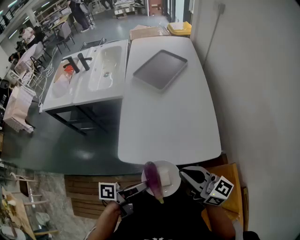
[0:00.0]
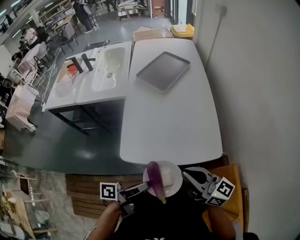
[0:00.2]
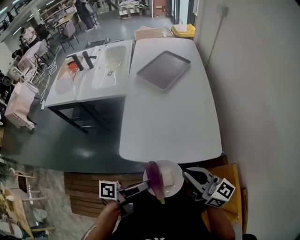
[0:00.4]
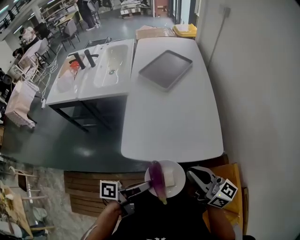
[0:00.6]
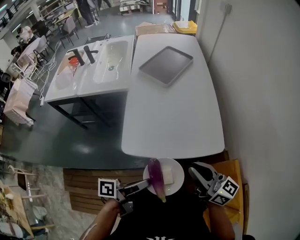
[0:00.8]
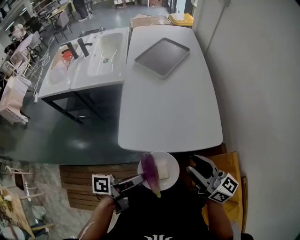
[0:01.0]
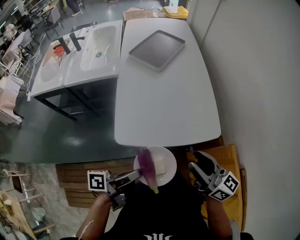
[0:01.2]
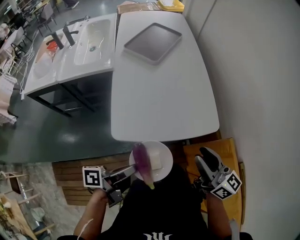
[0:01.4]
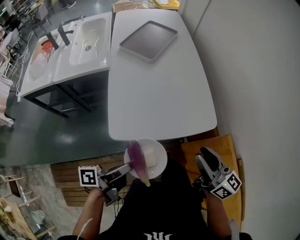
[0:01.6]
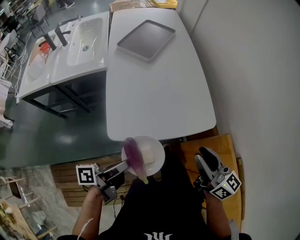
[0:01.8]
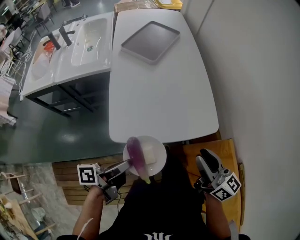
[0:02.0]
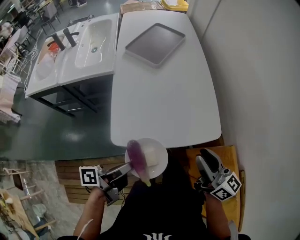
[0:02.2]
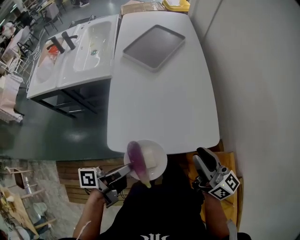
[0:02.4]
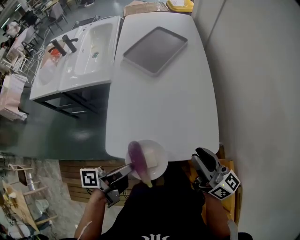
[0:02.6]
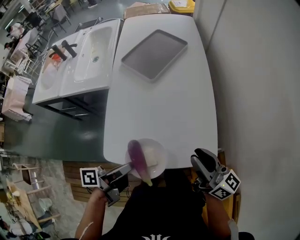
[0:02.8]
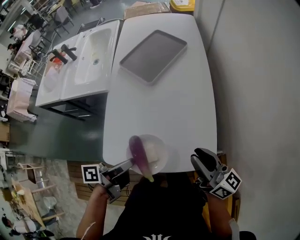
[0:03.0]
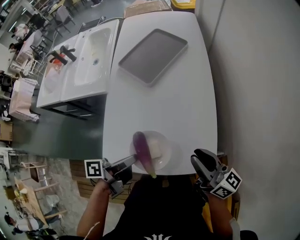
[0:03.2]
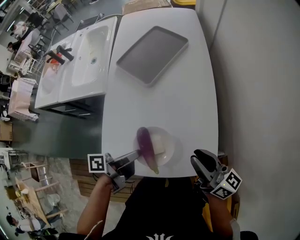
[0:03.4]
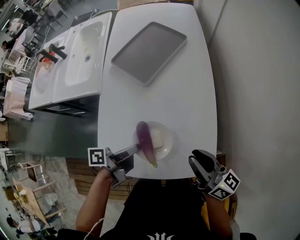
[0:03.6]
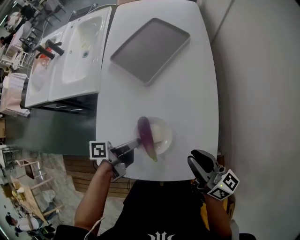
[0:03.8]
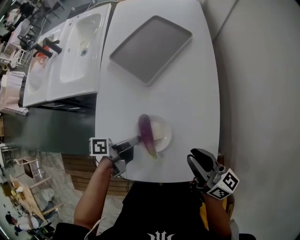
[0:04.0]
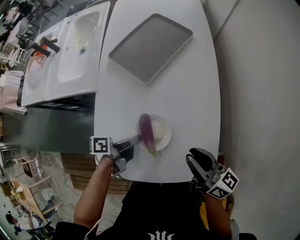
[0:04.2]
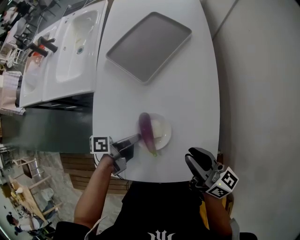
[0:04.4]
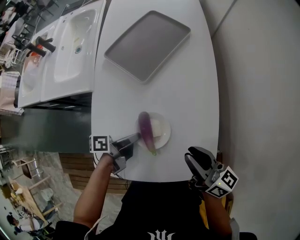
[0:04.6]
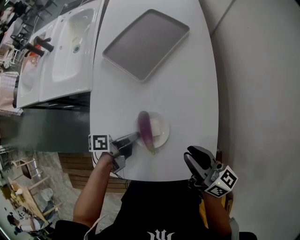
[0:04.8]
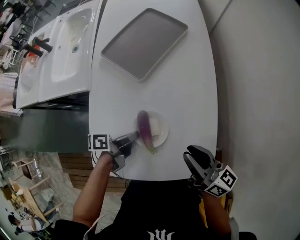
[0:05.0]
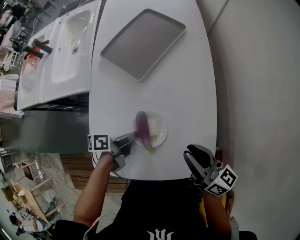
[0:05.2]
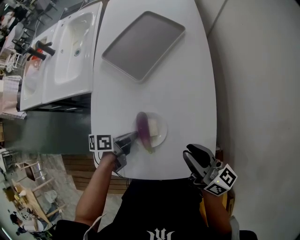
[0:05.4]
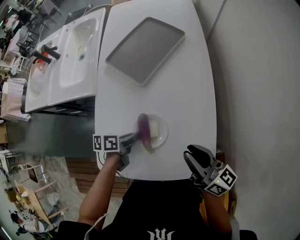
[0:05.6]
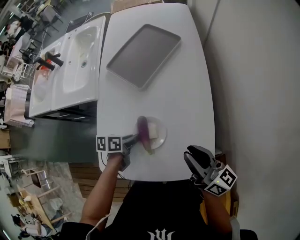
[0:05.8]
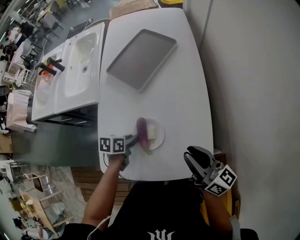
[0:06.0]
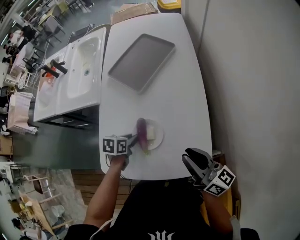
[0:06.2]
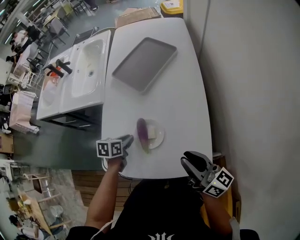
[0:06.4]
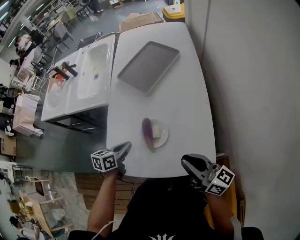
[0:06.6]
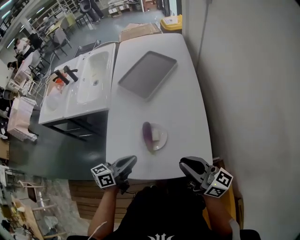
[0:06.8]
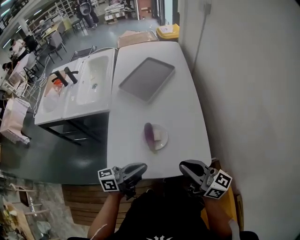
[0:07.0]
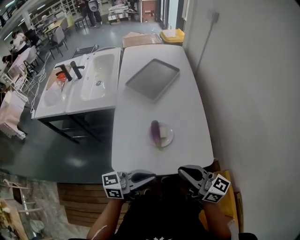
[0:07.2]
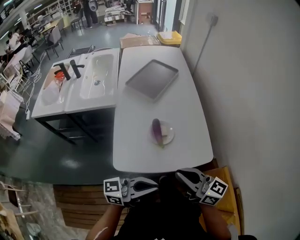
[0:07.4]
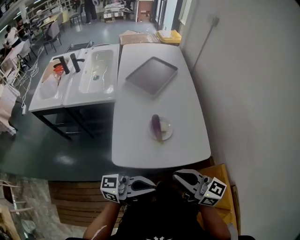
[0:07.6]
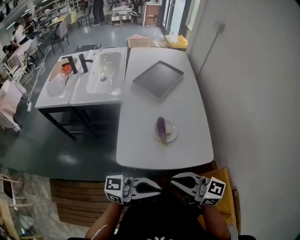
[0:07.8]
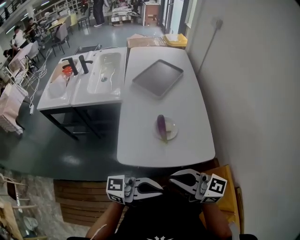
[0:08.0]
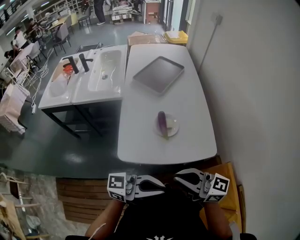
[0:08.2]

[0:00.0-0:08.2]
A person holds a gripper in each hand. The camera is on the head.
0.0 to 1.6 s: The right gripper ends up roughly 5 cm from where it was, rotates approximately 30 degrees, and opens its fingers.
1.6 to 3.2 s: The right gripper shifts by roughly 25 cm.
3.2 to 5.0 s: The right gripper changes place by about 10 cm.
5.0 to 6.6 s: The right gripper ends up roughly 10 cm from where it was.
6.6 to 8.2 s: The right gripper moves about 25 cm.

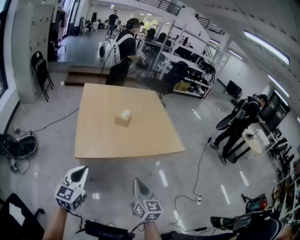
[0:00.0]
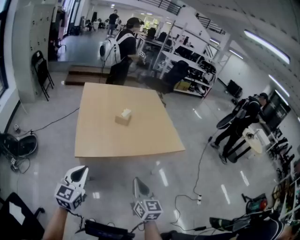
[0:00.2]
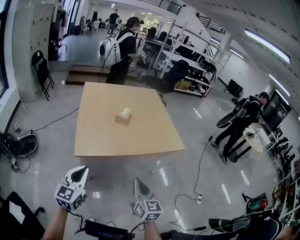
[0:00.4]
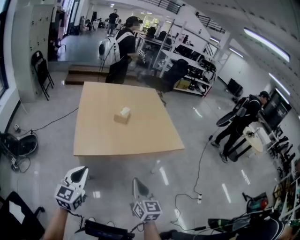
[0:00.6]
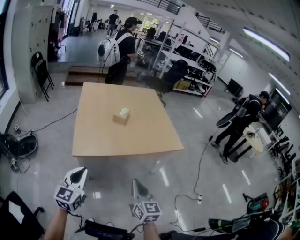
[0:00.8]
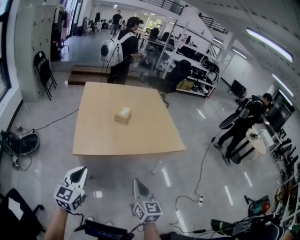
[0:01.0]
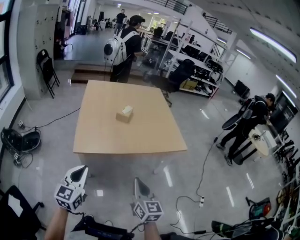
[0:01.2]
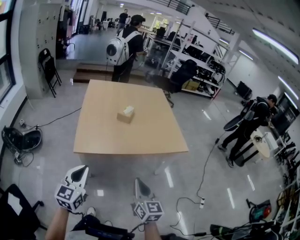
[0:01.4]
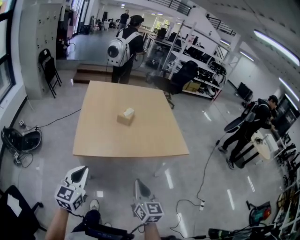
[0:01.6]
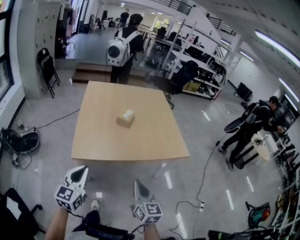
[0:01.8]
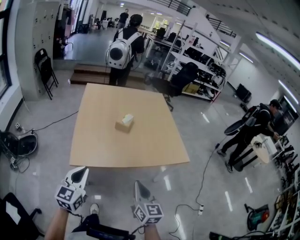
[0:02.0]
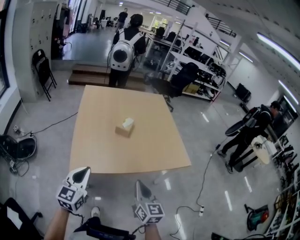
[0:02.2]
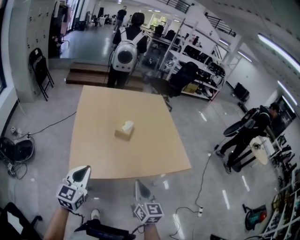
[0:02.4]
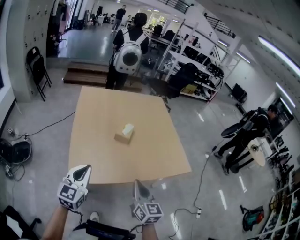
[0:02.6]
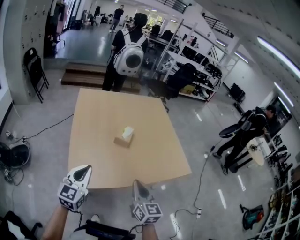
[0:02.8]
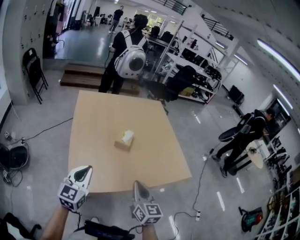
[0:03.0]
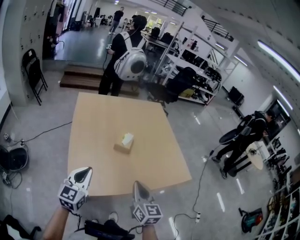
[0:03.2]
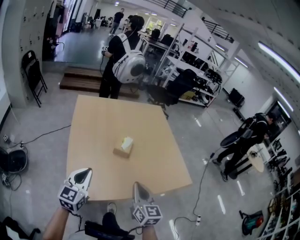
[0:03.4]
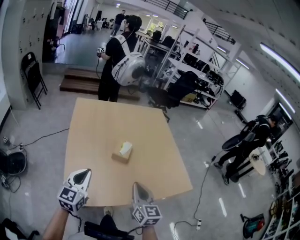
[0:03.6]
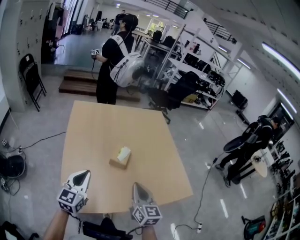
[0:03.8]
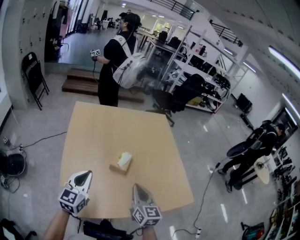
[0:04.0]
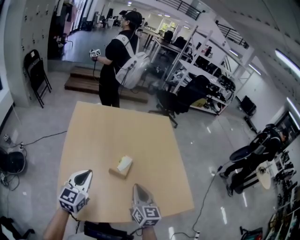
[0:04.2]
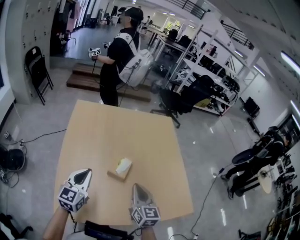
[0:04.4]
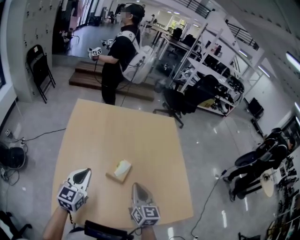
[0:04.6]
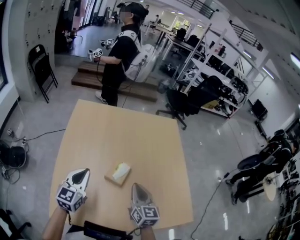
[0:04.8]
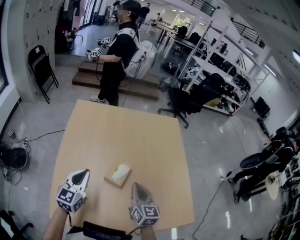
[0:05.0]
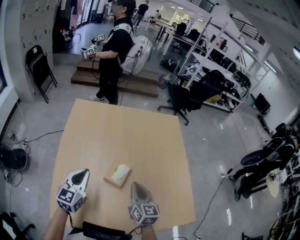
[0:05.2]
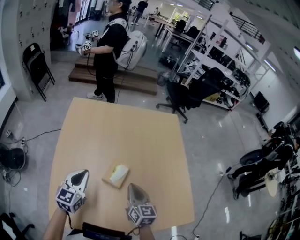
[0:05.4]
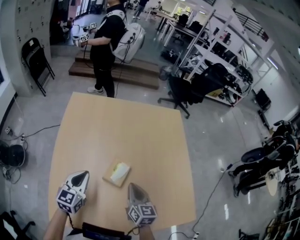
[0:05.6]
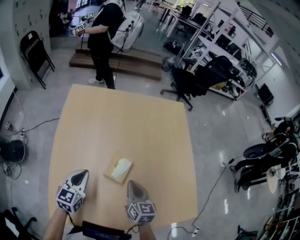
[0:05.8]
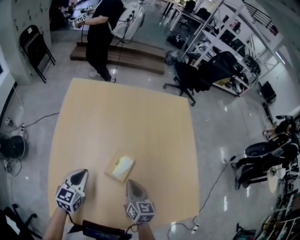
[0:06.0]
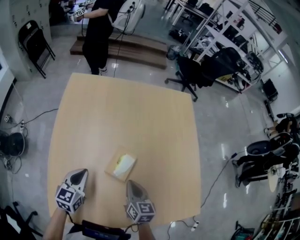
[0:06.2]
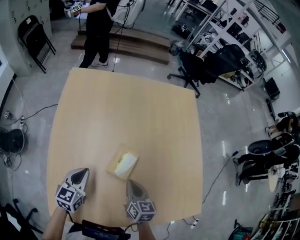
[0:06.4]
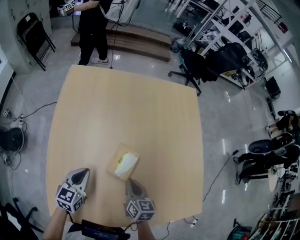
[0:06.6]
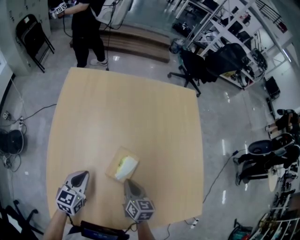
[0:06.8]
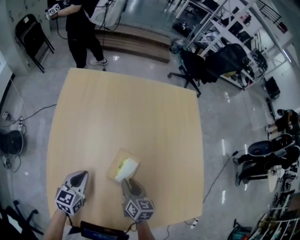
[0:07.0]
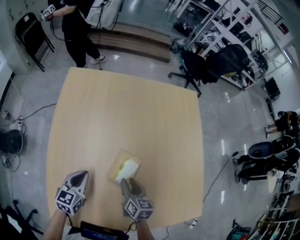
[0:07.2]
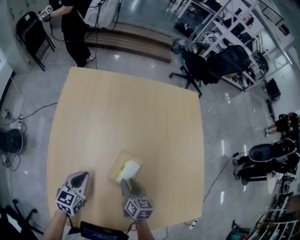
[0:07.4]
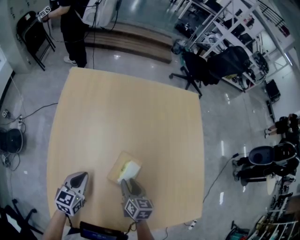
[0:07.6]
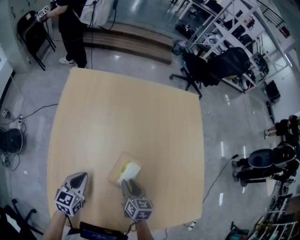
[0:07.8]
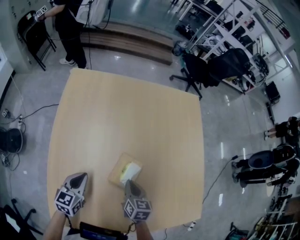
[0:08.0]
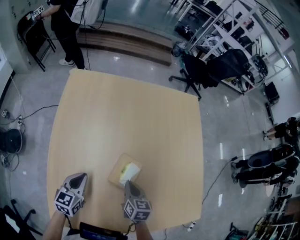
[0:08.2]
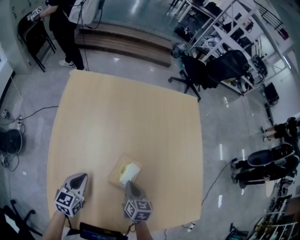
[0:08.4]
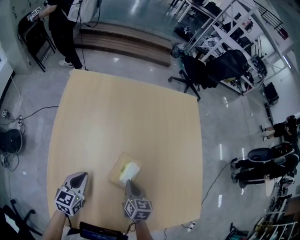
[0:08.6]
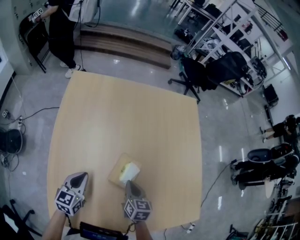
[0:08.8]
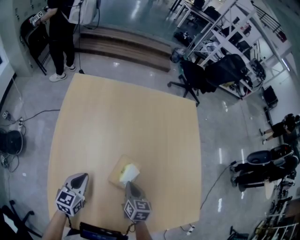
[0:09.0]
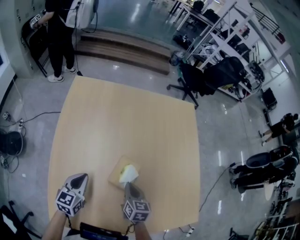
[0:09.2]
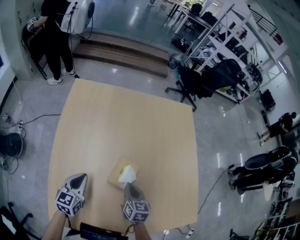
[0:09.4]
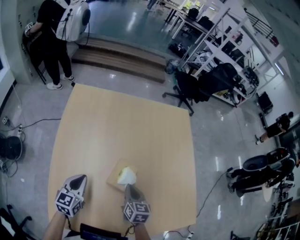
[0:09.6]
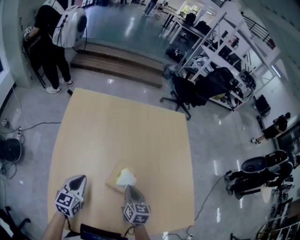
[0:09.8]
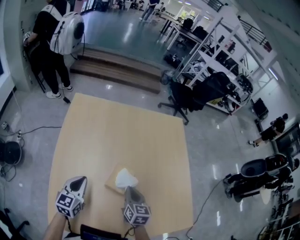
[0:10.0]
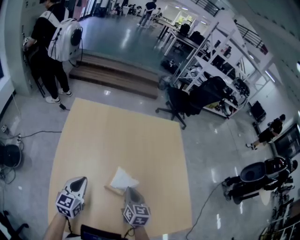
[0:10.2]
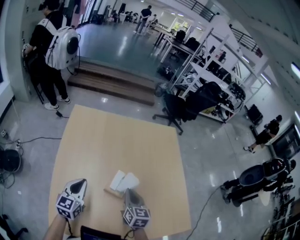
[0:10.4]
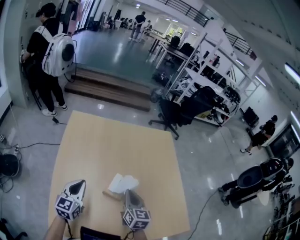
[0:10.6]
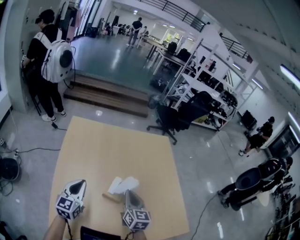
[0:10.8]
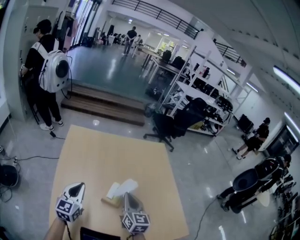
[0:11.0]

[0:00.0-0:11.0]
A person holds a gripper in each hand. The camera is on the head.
0.0 to 1.6 s: The grippers stay close to where they were, moving slightly.
1.6 to 3.2 s: The two grippers go roughly 25 cm forward.
3.2 to 4.8 s: Both grippers move forward, some 25 cm.
4.8 to 6.2 s: Both grippers move downward, some 10 cm.
6.2 to 7.8 s: The right gripper travels downward by roughly 5 cm, and opens.
7.8 to 9.4 s: The right gripper closes.
9.4 to 11.0 s: Both grippers move upward, some 15 cm. The left gripper turns by approximately 20 degrees. Meanwhile the right gripper changes its angle by some 30 degrees.

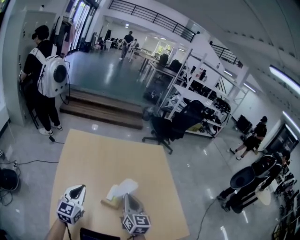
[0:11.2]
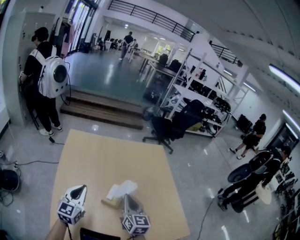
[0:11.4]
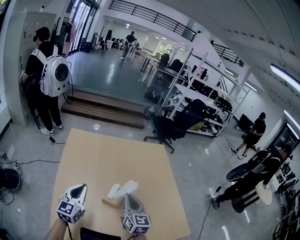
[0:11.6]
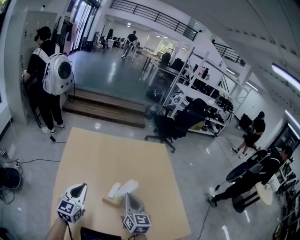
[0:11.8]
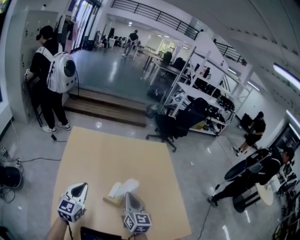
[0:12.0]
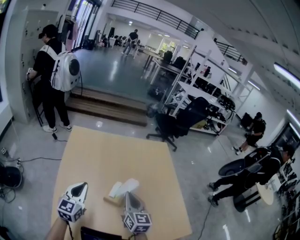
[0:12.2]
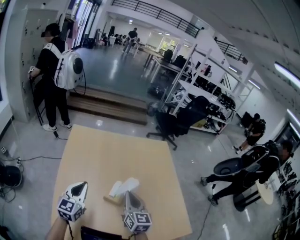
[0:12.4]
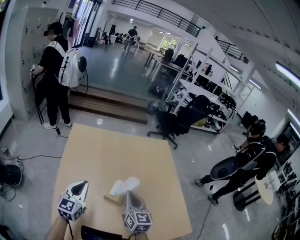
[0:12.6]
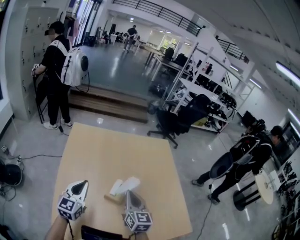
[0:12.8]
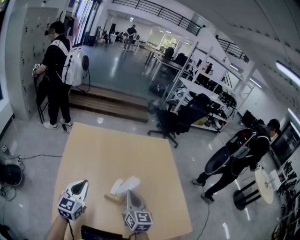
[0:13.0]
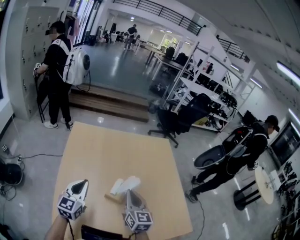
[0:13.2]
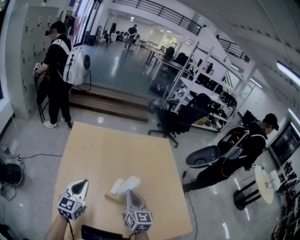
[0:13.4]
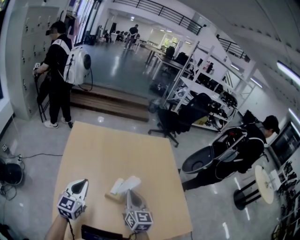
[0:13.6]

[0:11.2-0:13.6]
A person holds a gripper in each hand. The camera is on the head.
11.2 to 12.4 s: The grippers stay close to where they were, moving slightly.
12.4 to 13.6 s: Neither gripper changes place.

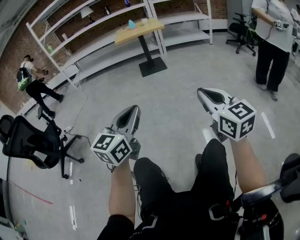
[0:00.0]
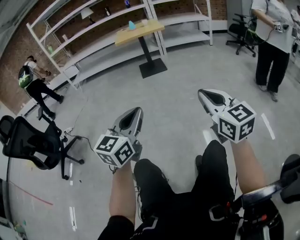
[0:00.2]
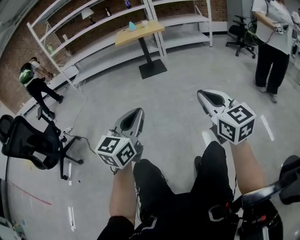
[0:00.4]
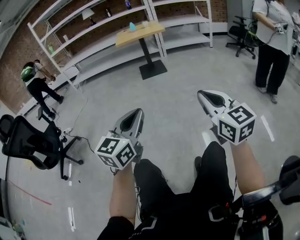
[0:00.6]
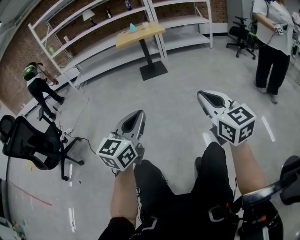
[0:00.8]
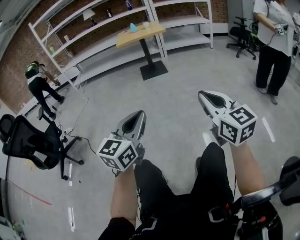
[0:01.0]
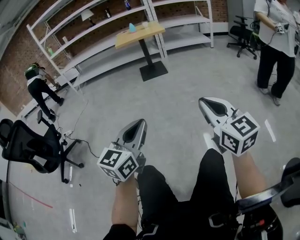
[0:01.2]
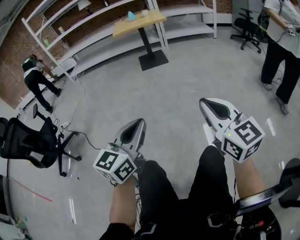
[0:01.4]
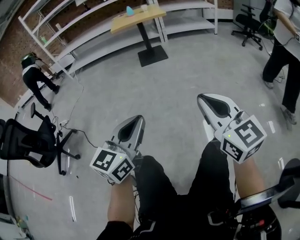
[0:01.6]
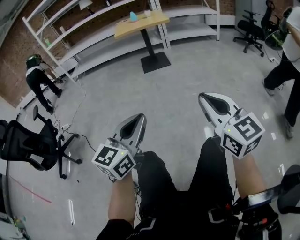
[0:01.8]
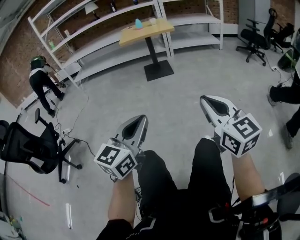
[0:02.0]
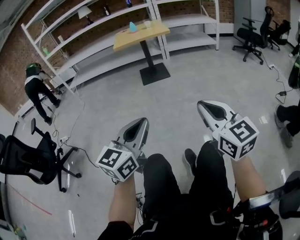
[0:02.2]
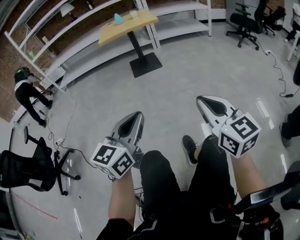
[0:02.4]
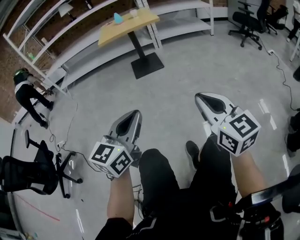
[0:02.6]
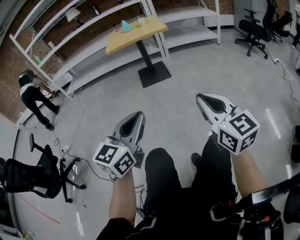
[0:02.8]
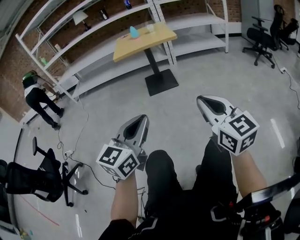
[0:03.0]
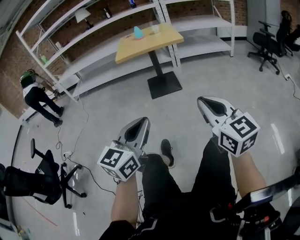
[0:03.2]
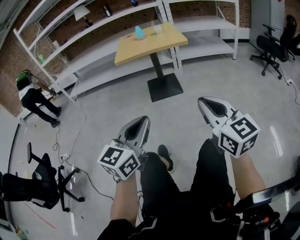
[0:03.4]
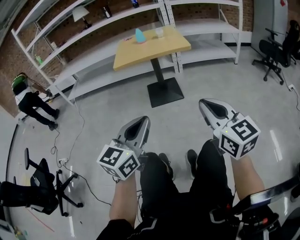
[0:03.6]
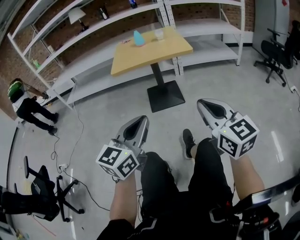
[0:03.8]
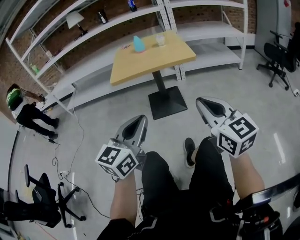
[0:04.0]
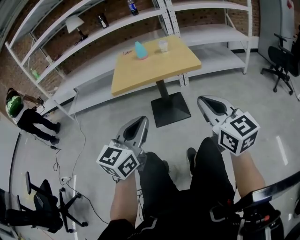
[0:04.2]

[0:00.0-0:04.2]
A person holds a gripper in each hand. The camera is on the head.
0.0 to 1.4 s: The left gripper shifts by some 5 cm.
1.4 to 2.8 s: The grippers both shift forward by some 30 cm.
2.8 to 4.2 s: The pair of grippers is taken forward, roughly 50 cm.
